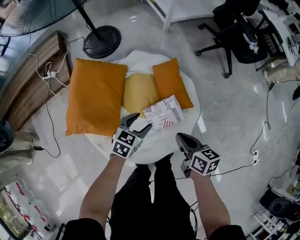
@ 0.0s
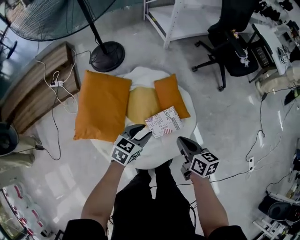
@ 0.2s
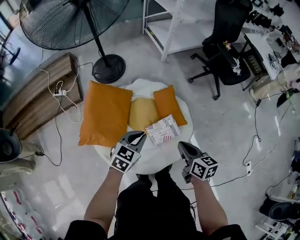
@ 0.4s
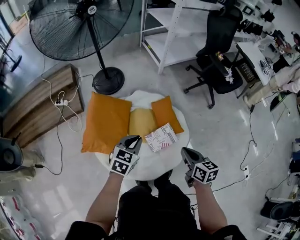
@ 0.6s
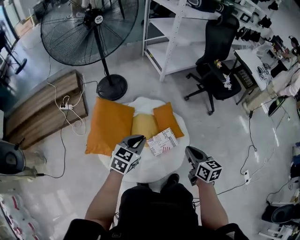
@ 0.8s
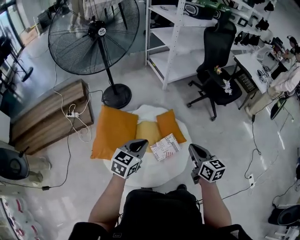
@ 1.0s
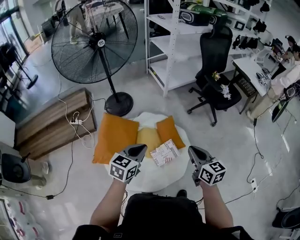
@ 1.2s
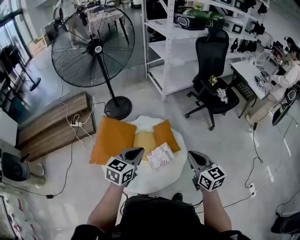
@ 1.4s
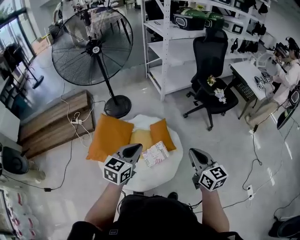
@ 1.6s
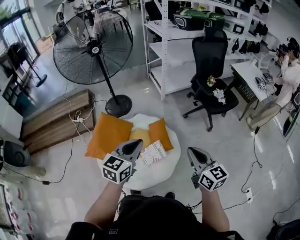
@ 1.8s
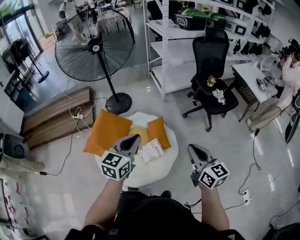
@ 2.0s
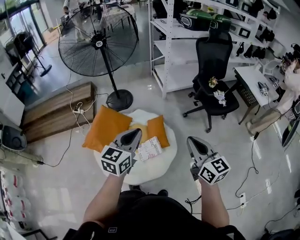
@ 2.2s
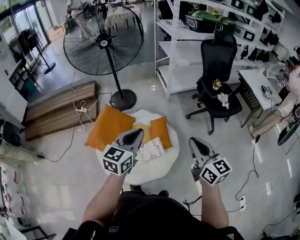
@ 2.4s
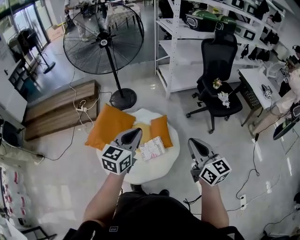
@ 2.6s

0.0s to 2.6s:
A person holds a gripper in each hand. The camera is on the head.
0.0s to 1.2s: Both grippers travel together upward, approximately 35 cm. The right gripper rotates roughly 30 degrees, while the left gripper closes.
1.2s to 2.6s: The two grippers go roughly 20 cm to the right and upward. The left gripper changes its angle by about 20 degrees.

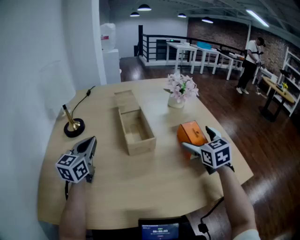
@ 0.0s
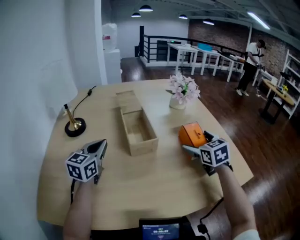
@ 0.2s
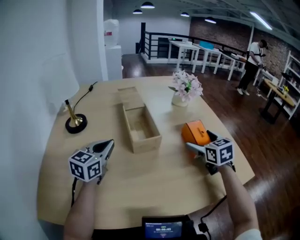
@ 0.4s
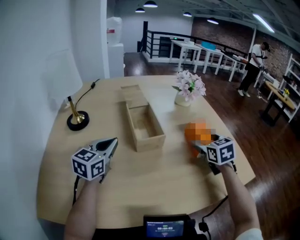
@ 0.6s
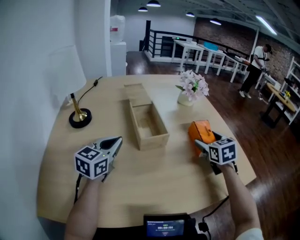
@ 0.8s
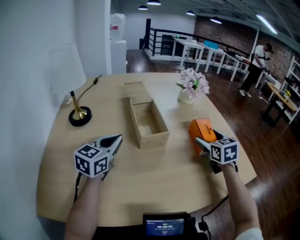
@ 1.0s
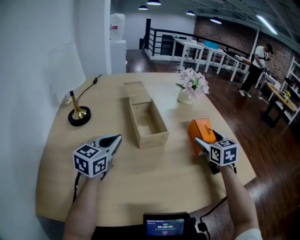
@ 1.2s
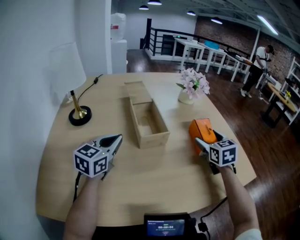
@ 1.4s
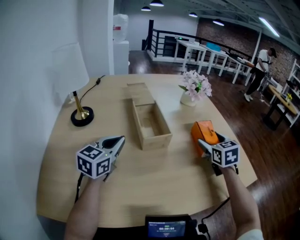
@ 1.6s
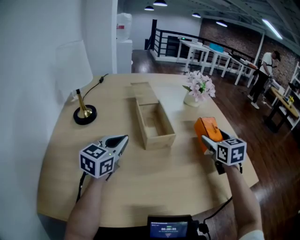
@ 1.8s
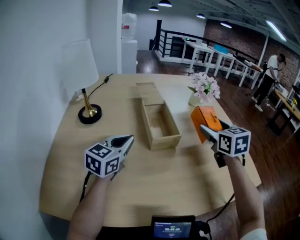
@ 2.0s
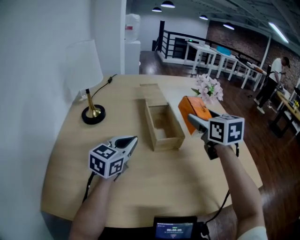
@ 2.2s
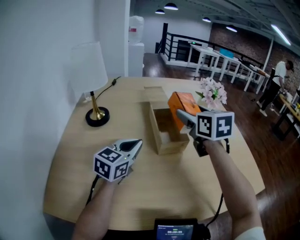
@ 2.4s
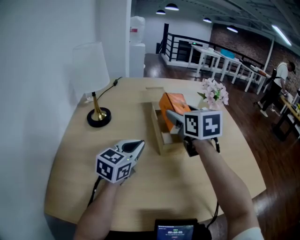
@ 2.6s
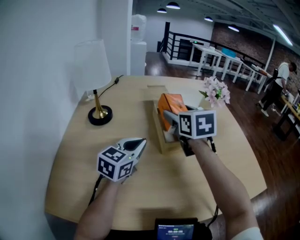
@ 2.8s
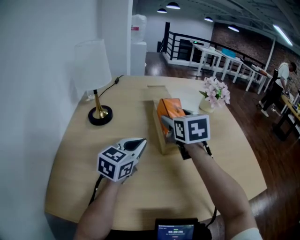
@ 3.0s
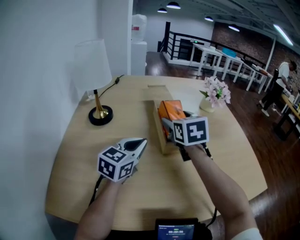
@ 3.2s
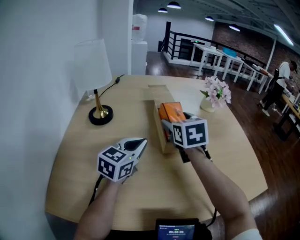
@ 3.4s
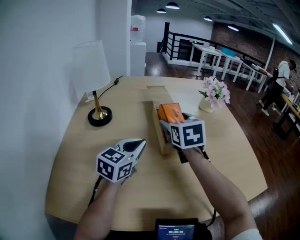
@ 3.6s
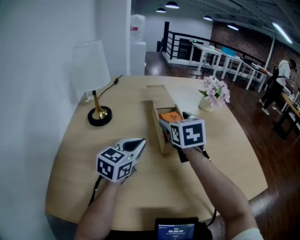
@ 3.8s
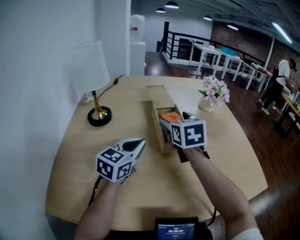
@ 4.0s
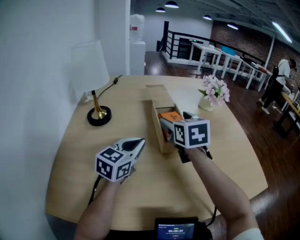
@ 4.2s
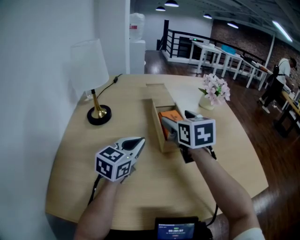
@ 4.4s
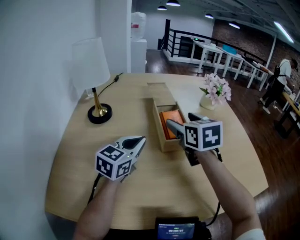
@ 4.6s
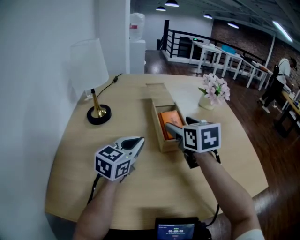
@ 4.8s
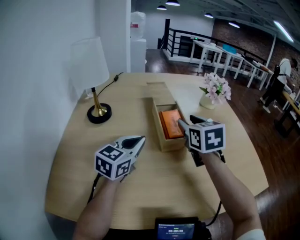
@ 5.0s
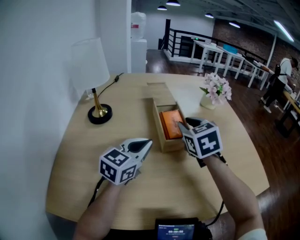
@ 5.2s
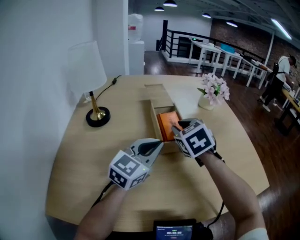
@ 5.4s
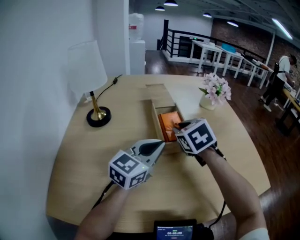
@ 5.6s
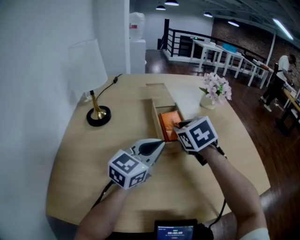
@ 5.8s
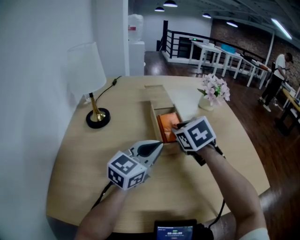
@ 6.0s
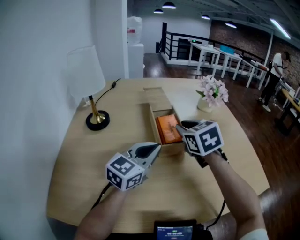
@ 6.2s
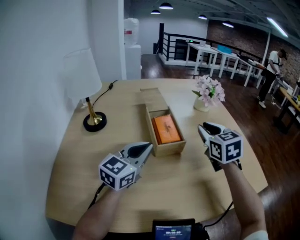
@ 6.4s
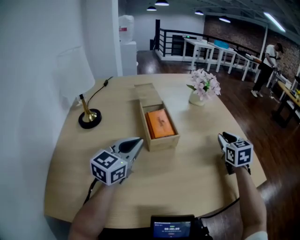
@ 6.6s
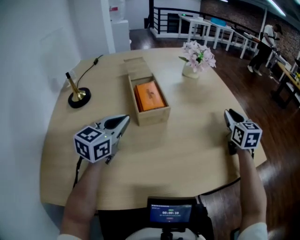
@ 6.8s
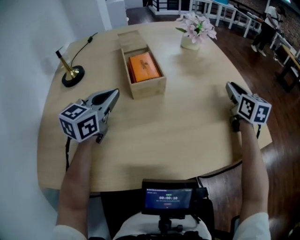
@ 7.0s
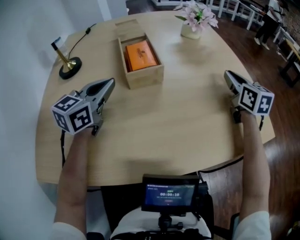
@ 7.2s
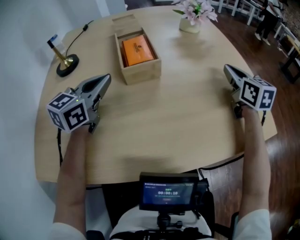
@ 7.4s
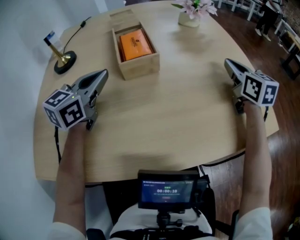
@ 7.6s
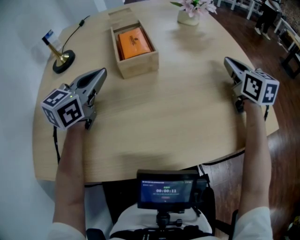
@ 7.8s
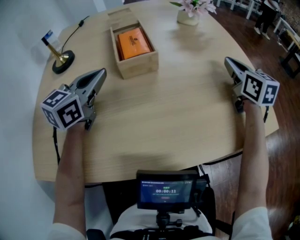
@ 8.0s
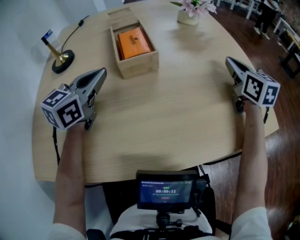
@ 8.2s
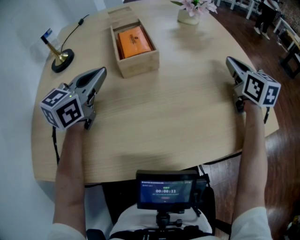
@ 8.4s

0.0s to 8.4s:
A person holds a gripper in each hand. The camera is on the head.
0.0s to 1.4s: The left gripper heads to the right, covering roughly 5 cm.
1.4s to 2.8s: The right gripper goes roughly 30 cm to the left and upward.
2.8s to 4.2s: There are only small adjustments of the grippers.
4.2s to 5.6s: The right gripper swivels roughly 30 degrees, and closes up; the left gripper heads to the right, covering about 5 cm.
5.6s to 7.0s: The right gripper heads to the right, covering some 30 cm, and rotates roughly 40 degrees. Meanwhile the left gripper shifts by some 5 cm.
7.0s to 8.4s: The grippers make only small movements.

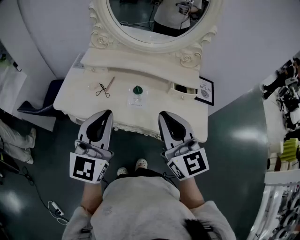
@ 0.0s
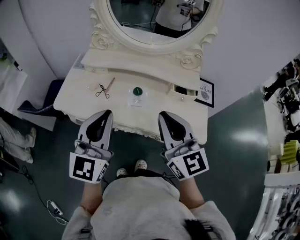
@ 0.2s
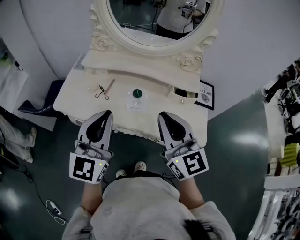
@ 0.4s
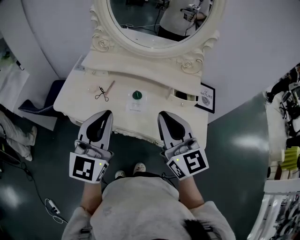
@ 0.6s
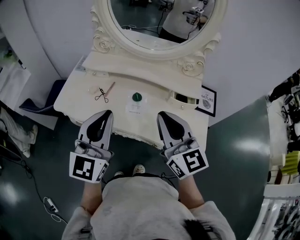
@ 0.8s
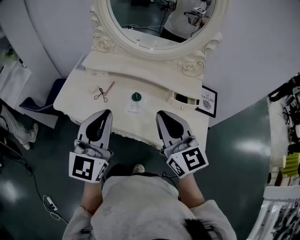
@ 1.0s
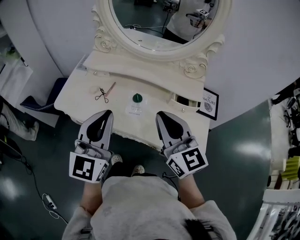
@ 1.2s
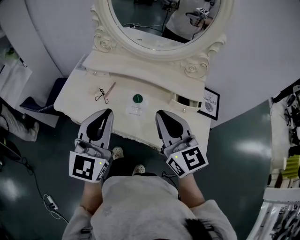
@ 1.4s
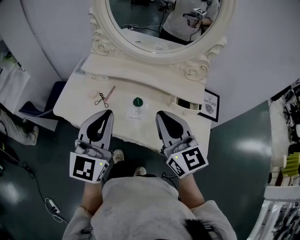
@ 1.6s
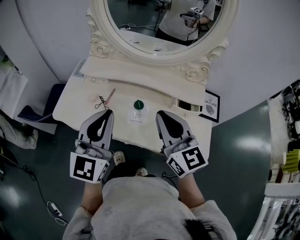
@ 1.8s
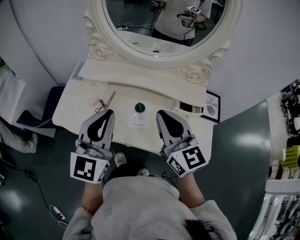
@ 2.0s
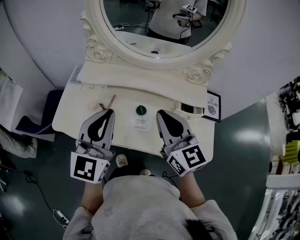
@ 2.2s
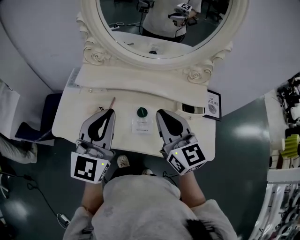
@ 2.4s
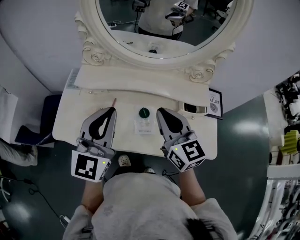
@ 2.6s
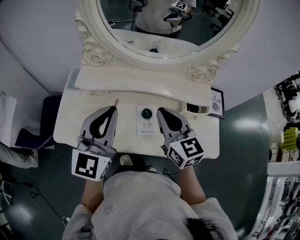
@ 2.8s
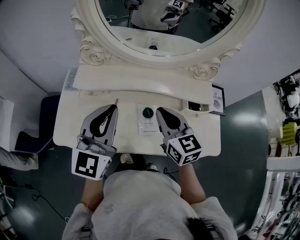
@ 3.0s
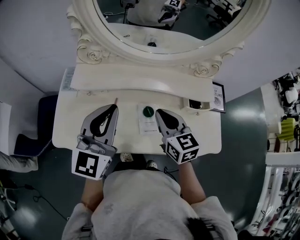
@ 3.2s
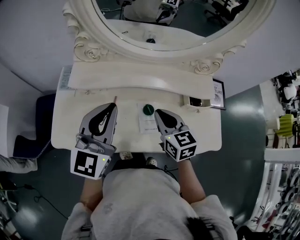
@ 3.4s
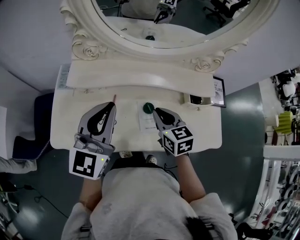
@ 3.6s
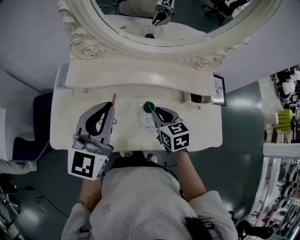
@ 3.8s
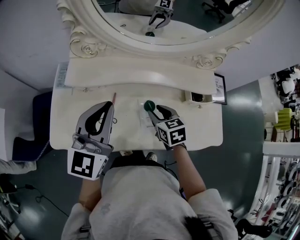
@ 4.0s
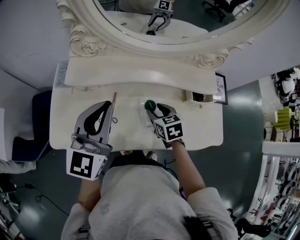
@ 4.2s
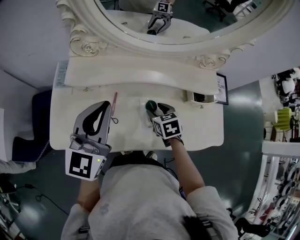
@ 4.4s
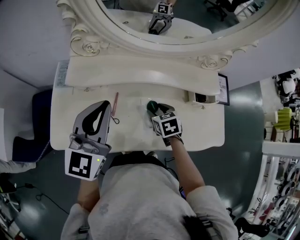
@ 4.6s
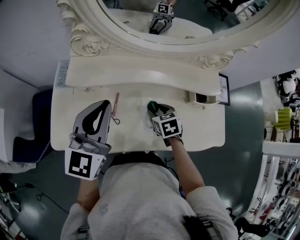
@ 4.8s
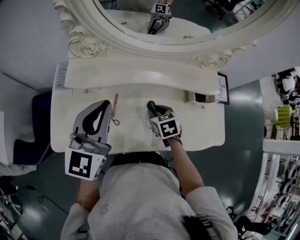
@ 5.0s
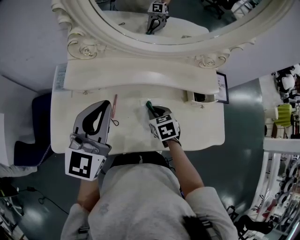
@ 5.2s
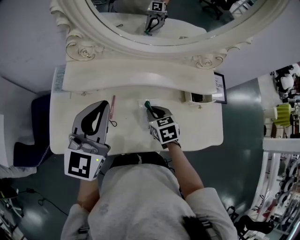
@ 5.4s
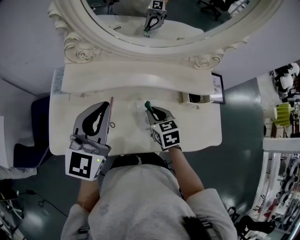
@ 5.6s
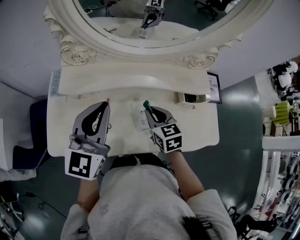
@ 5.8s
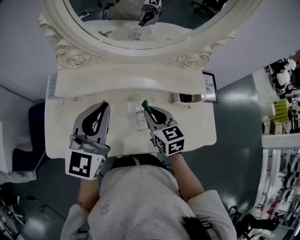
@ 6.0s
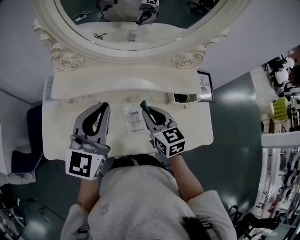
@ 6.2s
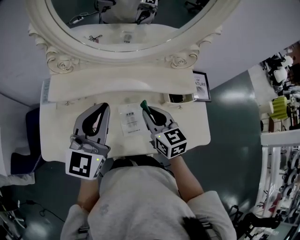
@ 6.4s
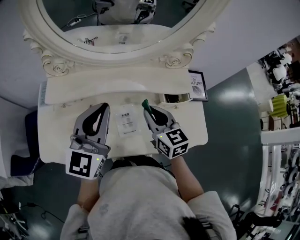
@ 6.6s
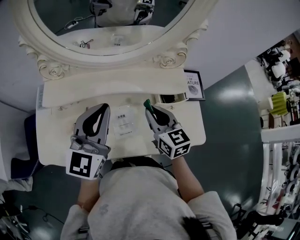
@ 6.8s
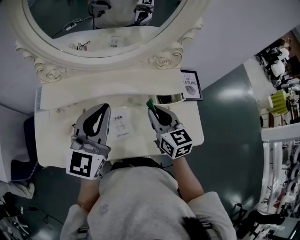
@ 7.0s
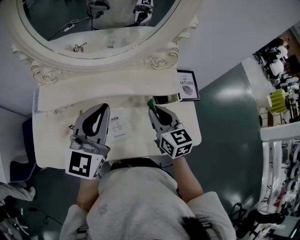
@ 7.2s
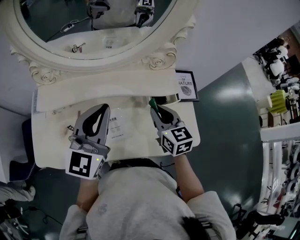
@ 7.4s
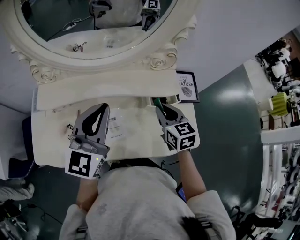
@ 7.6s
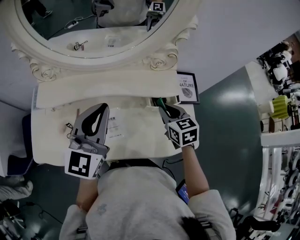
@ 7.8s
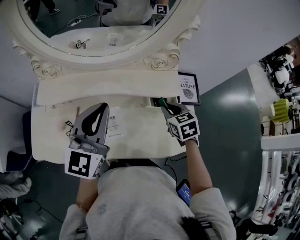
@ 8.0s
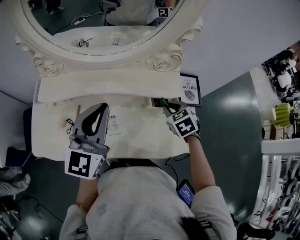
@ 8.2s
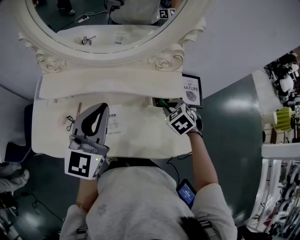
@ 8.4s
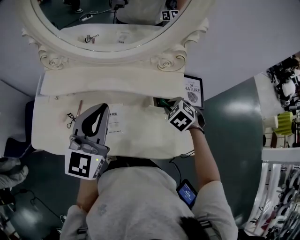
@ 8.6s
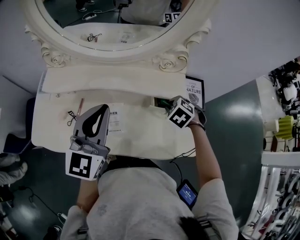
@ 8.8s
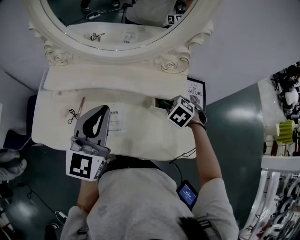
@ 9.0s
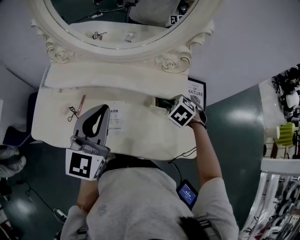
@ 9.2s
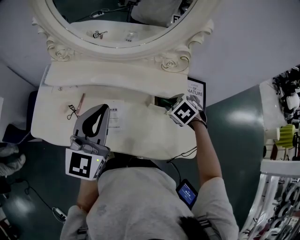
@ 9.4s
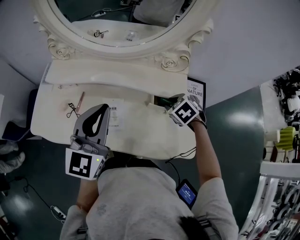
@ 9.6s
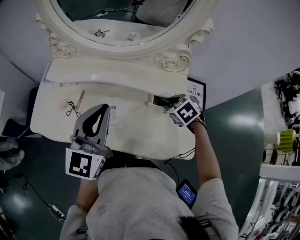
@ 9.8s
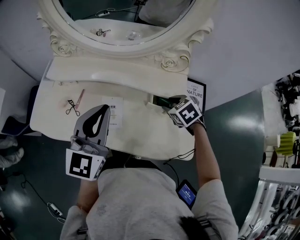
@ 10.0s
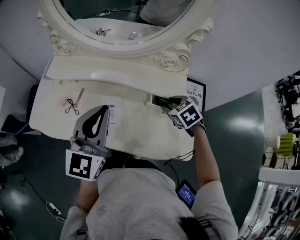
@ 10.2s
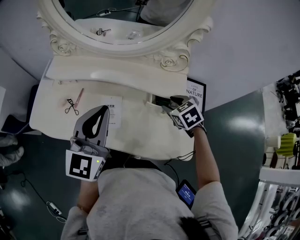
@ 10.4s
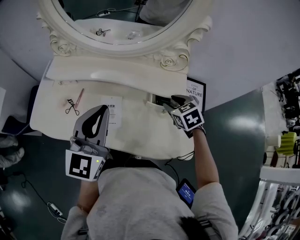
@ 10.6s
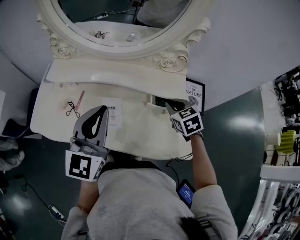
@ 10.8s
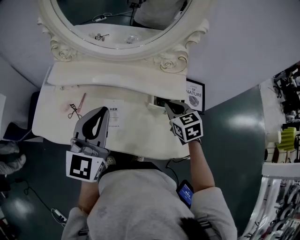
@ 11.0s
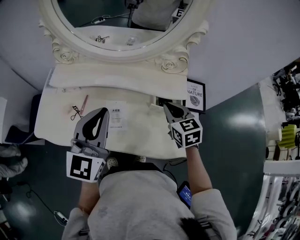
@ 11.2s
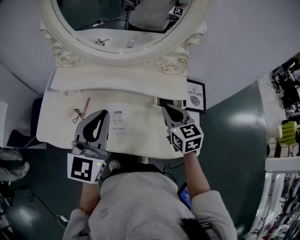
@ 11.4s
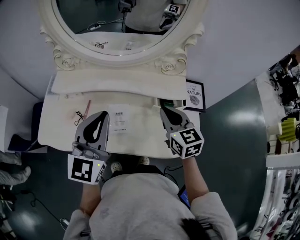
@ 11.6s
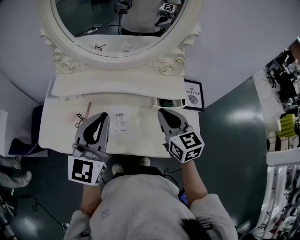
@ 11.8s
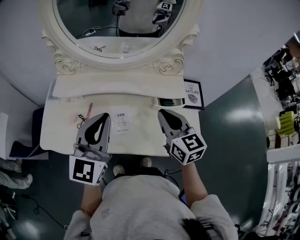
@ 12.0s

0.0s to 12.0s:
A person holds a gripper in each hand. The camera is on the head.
0.0s to 1.6s: Both grippers travel together forward, some 5 cm.
1.6s to 3.0s: The left gripper moves forward and to the left, some 15 cm, while the right gripper is displaced forward, downward and to the left by about 15 cm, and changes its angle by roughly 20 degrees.
3.0s to 4.4s: The right gripper moves downward, roughly 20 cm, points its fingers roughly 40 degrees further downward, and opens its fingers. Meanwhile the left gripper shifts by some 5 cm.
4.4s to 6.0s: The right gripper moves upward, roughly 10 cm, changes its angle by about 20 degrees, and closes, while the left gripper is displaced to the right by about 5 cm.
6.0s to 7.6s: The grippers both shift to the right by some 15 cm.
7.6s to 9.0s: The right gripper travels downward by about 10 cm, and angles its fingers downward, by about 40 degrees.
9.0s to 10.4s: The right gripper turns by some 20 degrees, and opens.
10.4s to 12.0s: The left gripper travels to the left by about 5 cm. The right gripper shifts about 20 cm upward, to the left and backward, points its fingers some 40 degrees further upward, and closes.
